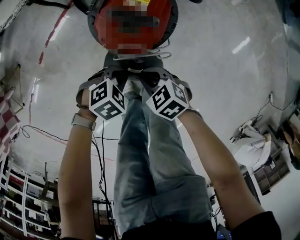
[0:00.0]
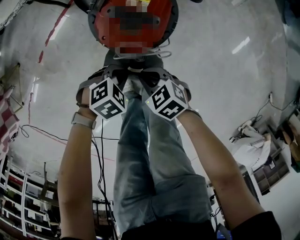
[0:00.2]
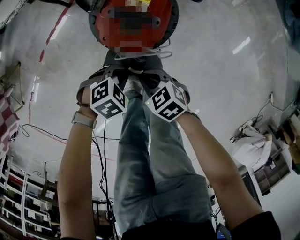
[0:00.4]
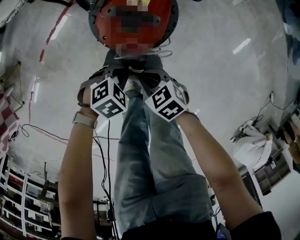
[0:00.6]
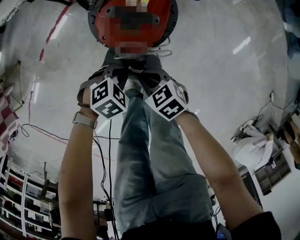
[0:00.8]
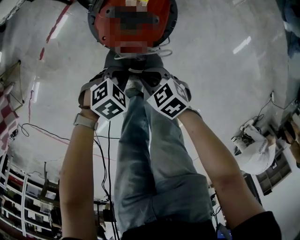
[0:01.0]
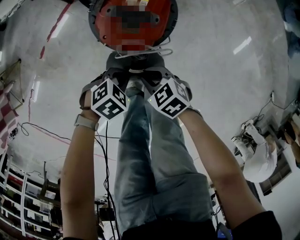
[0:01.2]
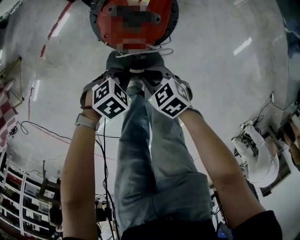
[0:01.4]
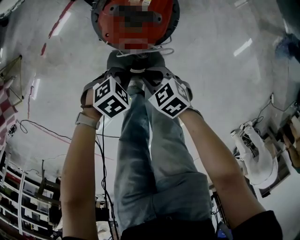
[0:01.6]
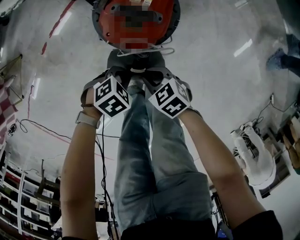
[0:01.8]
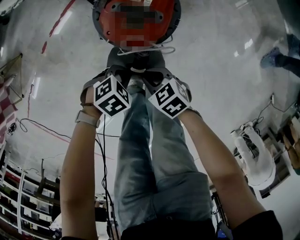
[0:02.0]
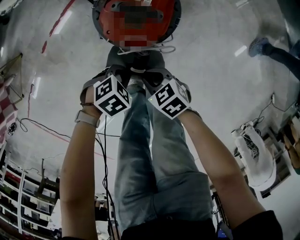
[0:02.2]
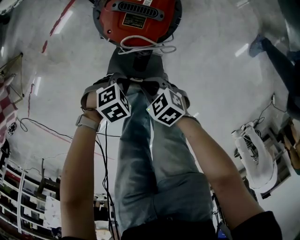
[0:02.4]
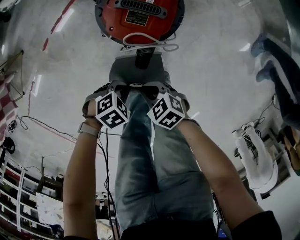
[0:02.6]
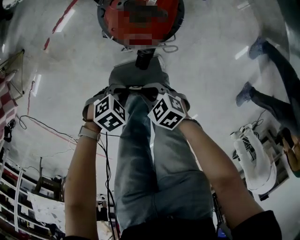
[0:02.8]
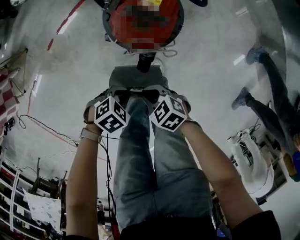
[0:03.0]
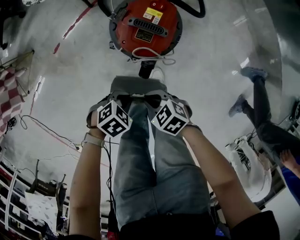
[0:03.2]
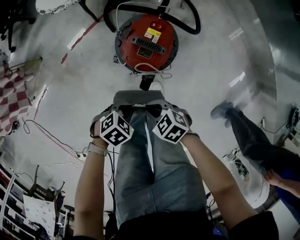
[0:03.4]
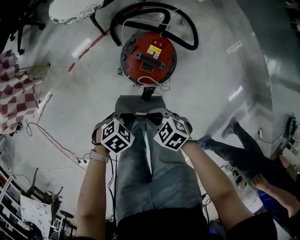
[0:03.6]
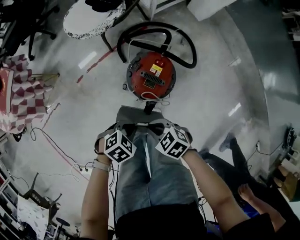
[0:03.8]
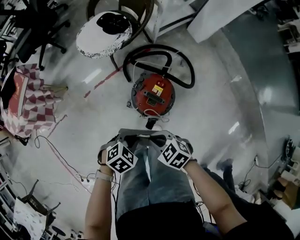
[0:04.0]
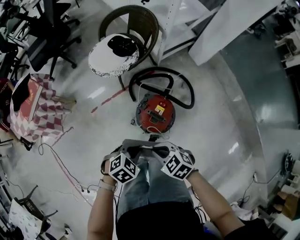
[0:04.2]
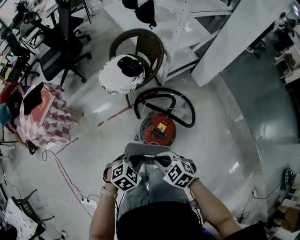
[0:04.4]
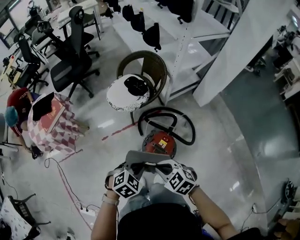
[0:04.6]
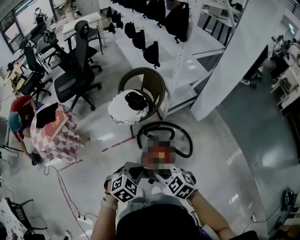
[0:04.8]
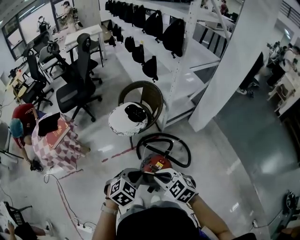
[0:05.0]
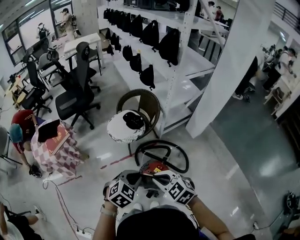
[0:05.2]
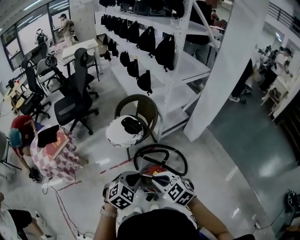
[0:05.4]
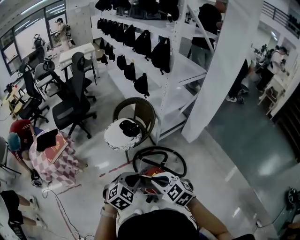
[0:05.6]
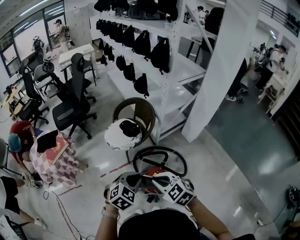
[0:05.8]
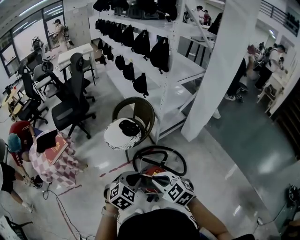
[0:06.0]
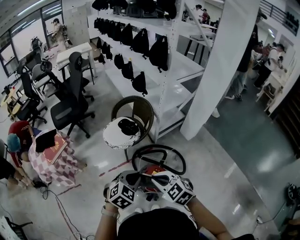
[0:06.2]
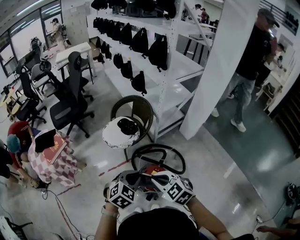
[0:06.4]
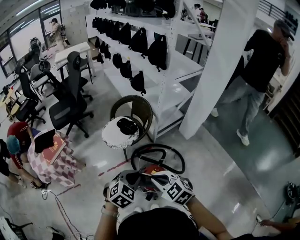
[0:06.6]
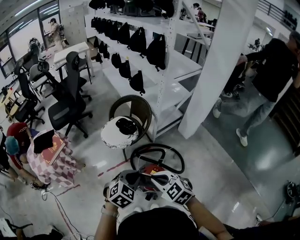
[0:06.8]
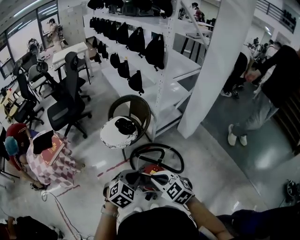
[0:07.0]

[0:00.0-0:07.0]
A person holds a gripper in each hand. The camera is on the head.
0.0 to 1.4 s: The left gripper moves some 5 cm.
1.4 to 2.8 s: The left gripper shifts by approximately 10 cm; the right gripper moves some 10 cm.
2.8 to 4.2 s: Both grippers travel together upward, about 40 cm. The left gripper rotates about 30 degrees.
4.2 to 5.6 s: Both grippers move upward, roughly 30 cm. The right gripper changes its angle by approximately 20 degrees; the left gripper turns by about 30 degrees.
5.6 to 7.0 s: The two grippers keep their place.

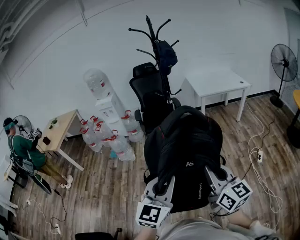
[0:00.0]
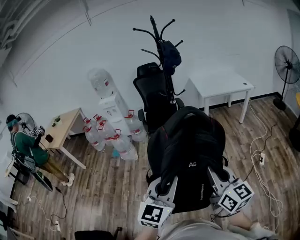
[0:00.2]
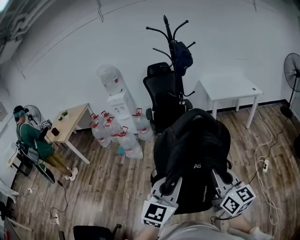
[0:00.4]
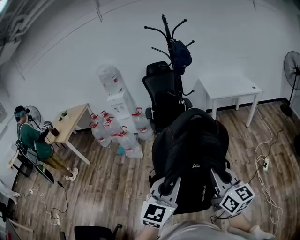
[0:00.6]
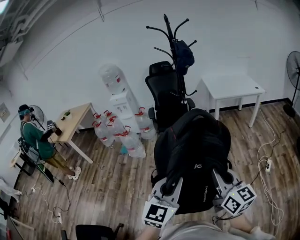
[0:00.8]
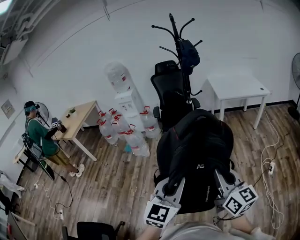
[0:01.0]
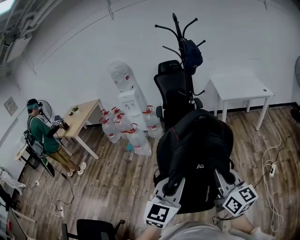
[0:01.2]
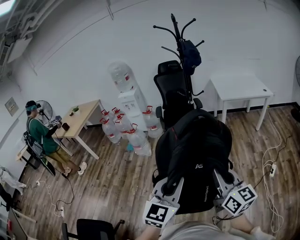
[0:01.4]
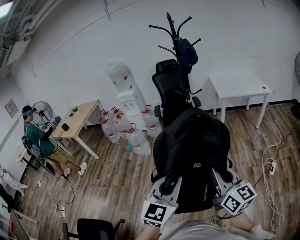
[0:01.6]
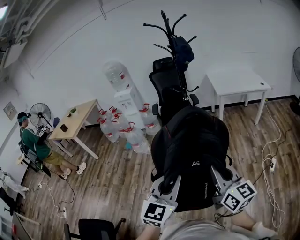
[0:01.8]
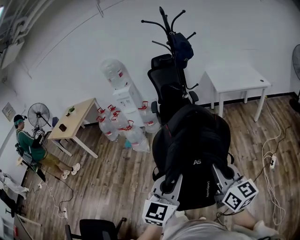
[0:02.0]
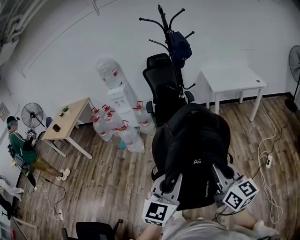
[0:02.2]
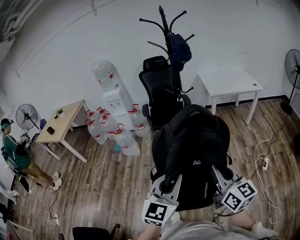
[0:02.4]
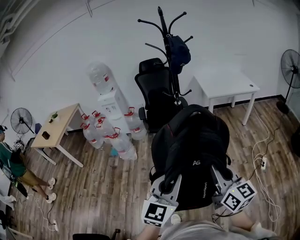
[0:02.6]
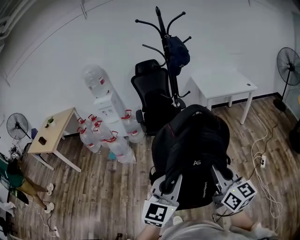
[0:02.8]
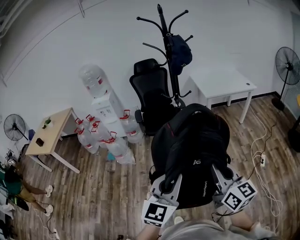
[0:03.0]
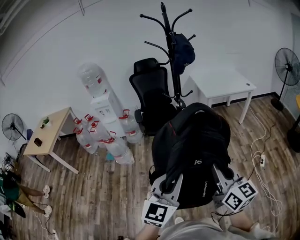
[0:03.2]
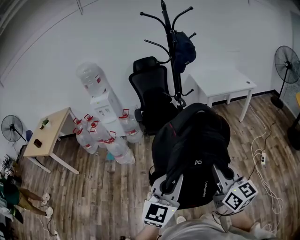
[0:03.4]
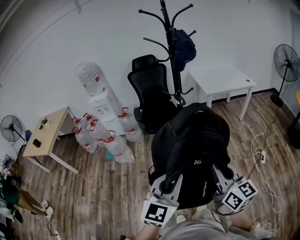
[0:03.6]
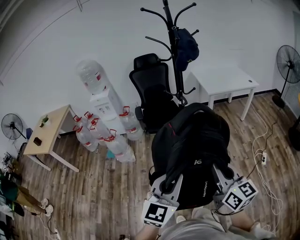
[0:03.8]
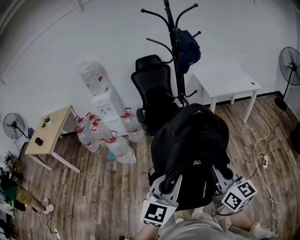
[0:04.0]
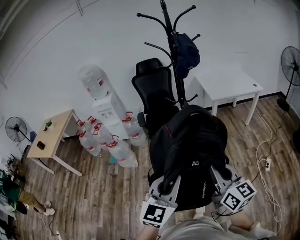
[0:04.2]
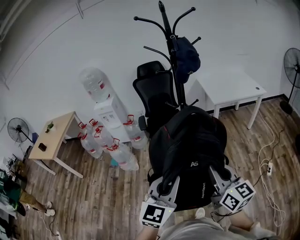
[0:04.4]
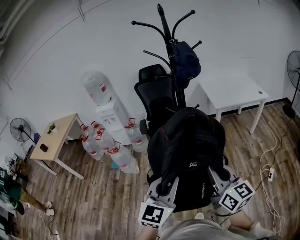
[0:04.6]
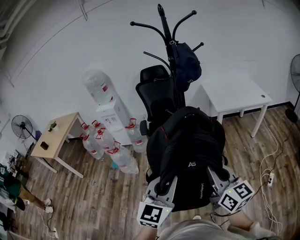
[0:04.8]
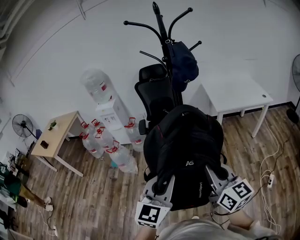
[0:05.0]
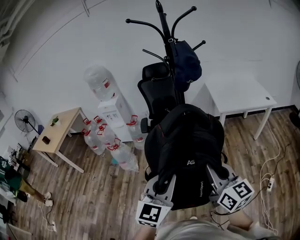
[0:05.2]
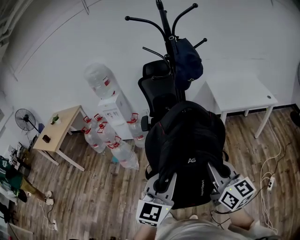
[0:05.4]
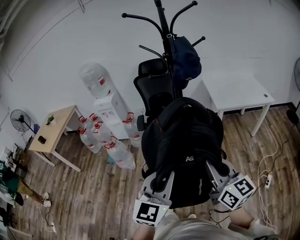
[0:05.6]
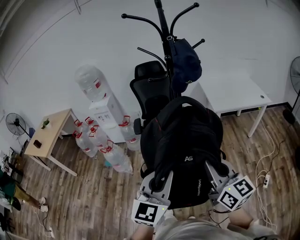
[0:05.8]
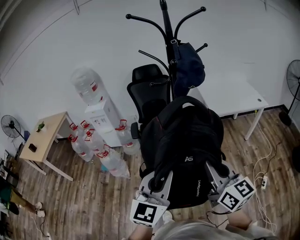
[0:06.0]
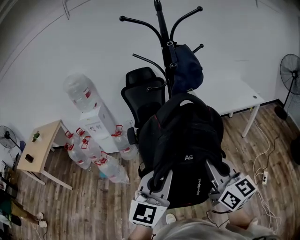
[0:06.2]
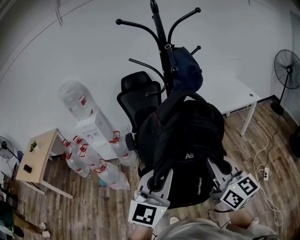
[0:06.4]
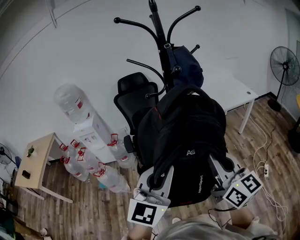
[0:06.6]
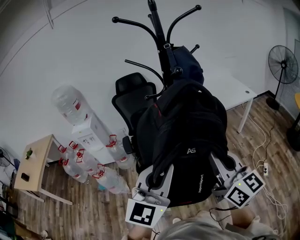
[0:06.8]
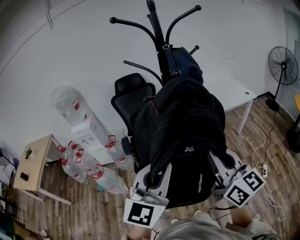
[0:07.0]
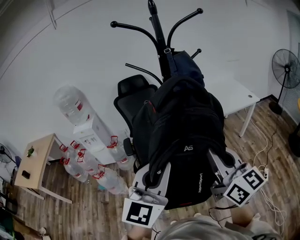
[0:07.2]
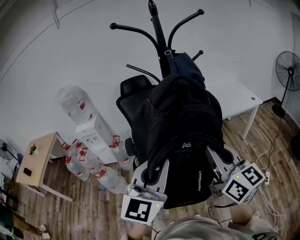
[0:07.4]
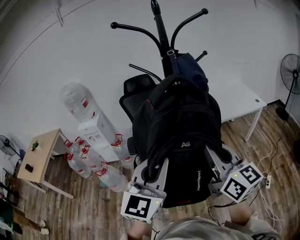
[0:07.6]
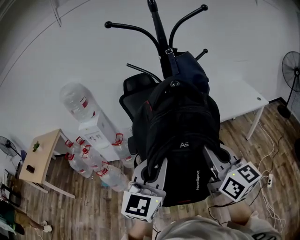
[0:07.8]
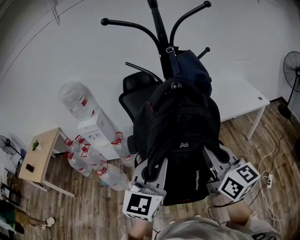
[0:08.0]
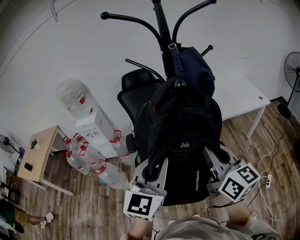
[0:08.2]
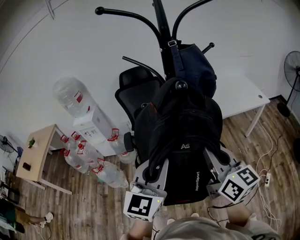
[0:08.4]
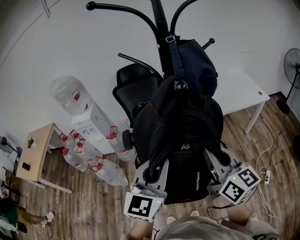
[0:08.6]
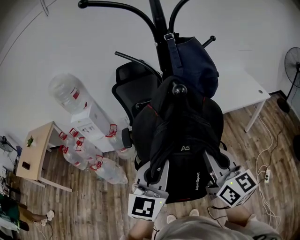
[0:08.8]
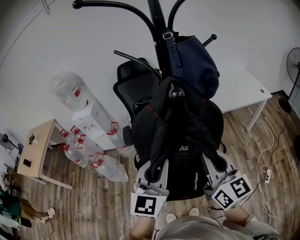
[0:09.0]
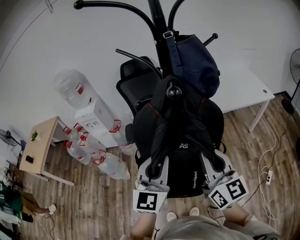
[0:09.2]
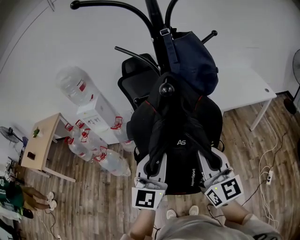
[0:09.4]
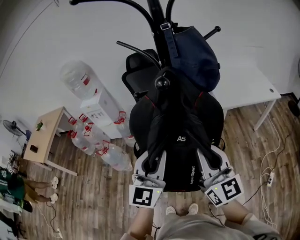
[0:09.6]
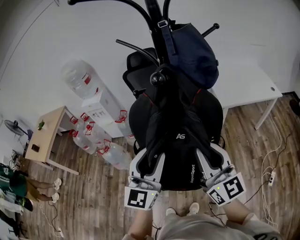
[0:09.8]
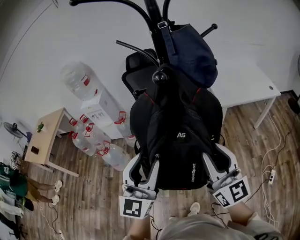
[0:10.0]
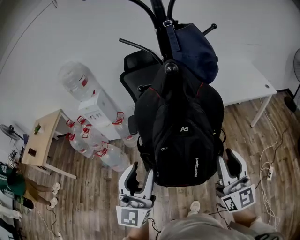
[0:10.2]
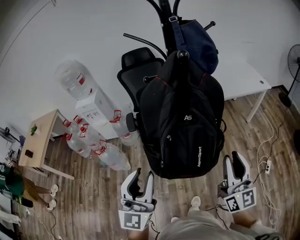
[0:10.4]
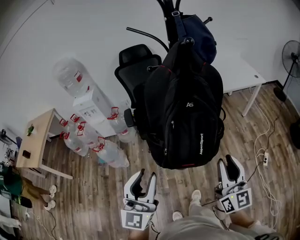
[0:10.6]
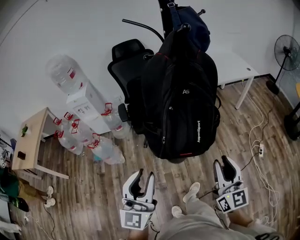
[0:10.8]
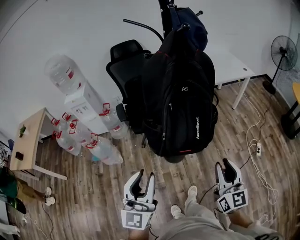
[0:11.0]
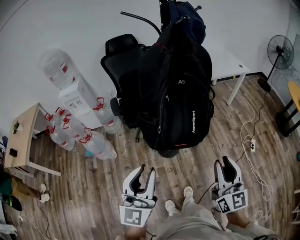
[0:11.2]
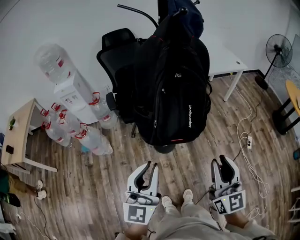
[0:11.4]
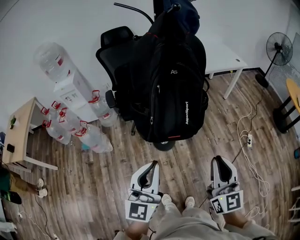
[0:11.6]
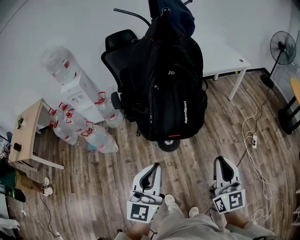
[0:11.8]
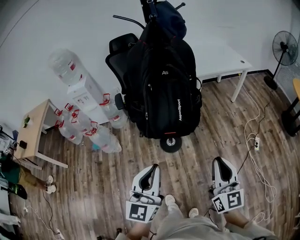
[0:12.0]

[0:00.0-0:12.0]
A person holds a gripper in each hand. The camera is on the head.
0.0 to 1.6 s: The grippers stay close to where they were, moving slightly.
1.6 to 3.0 s: The two grippers go about 15 cm forward and to the left.
3.0 to 4.4 s: Both grippers travel together forward, about 15 cm.
4.4 to 6.0 s: Both grippers travel together forward, some 15 cm.
6.0 to 7.6 s: Both grippers travel together forward and upward, some 15 cm.
7.6 to 9.0 s: Both grippers move forward and downward, about 10 cm.
9.0 to 10.4 s: The left gripper shifts some 20 cm backward and to the left, and opens; the right gripper shifts roughly 15 cm backward and to the right, and opens its fingers.
10.4 to 12.0 s: The right gripper heads backward, covering some 20 cm, and closes its fingers; the left gripper is displaced backward, to the right and downward by some 20 cm, and closes its fingers.

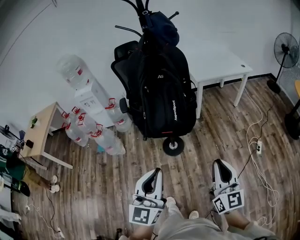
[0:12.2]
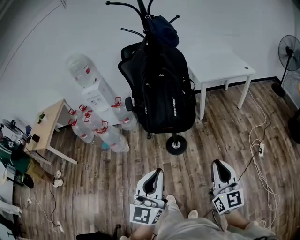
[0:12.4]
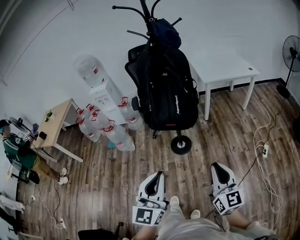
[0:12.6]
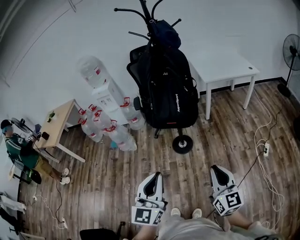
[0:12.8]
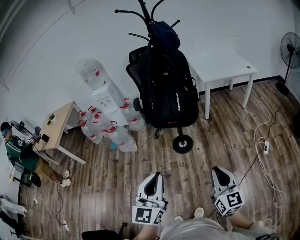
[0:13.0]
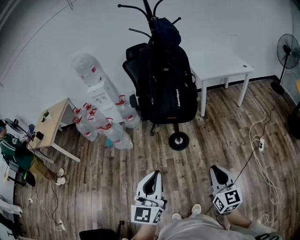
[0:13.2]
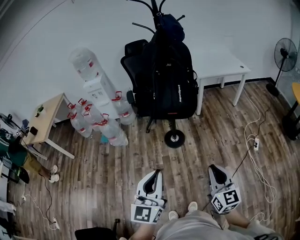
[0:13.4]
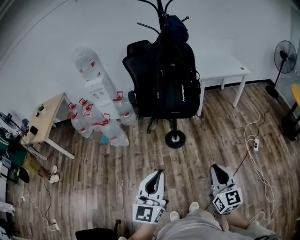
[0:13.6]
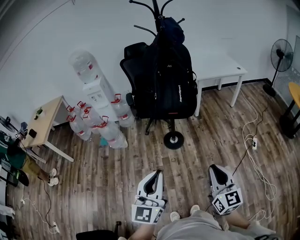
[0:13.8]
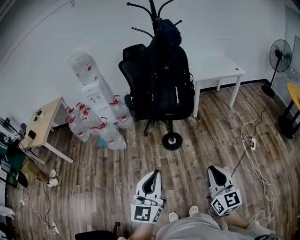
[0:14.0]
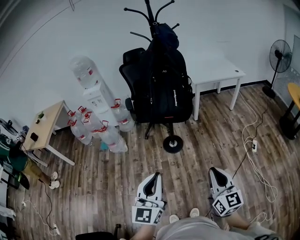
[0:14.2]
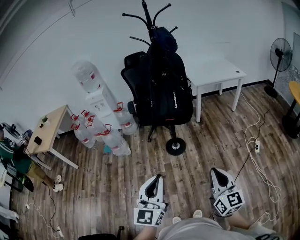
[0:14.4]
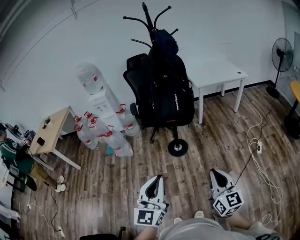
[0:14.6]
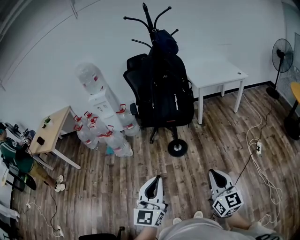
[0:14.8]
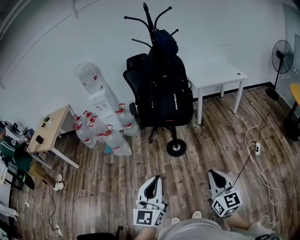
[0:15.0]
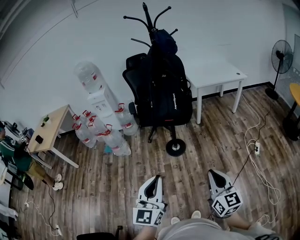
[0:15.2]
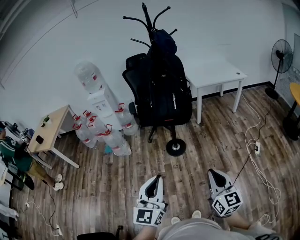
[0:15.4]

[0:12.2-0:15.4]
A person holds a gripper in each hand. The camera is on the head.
12.2 to 13.8 s: Both grippers move backward, about 20 cm.
13.8 to 15.4 s: The right gripper ends up about 5 cm from where it was. The left gripper shifts about 5 cm to the right.

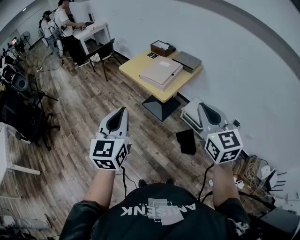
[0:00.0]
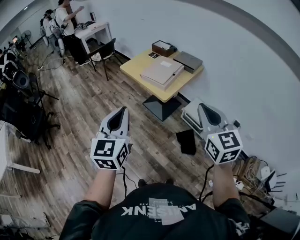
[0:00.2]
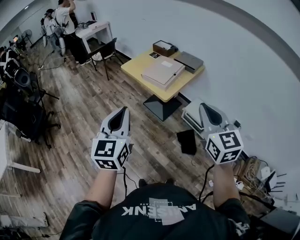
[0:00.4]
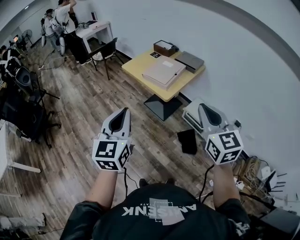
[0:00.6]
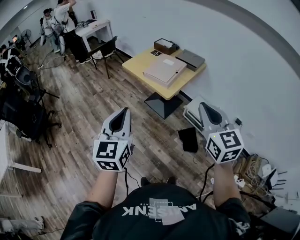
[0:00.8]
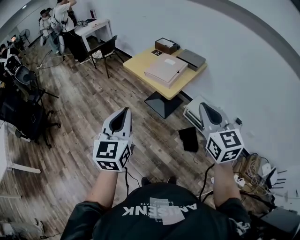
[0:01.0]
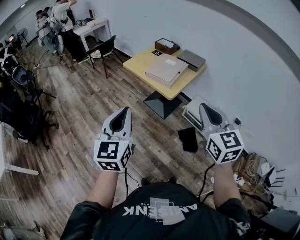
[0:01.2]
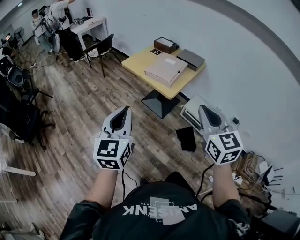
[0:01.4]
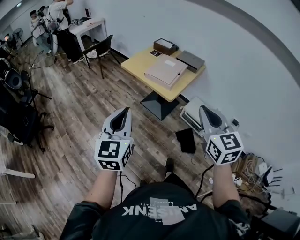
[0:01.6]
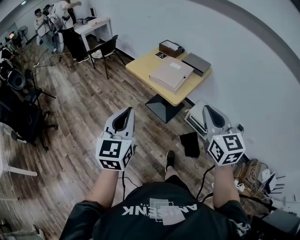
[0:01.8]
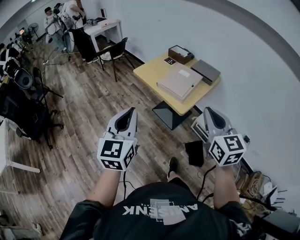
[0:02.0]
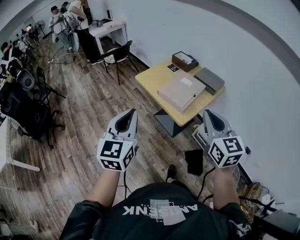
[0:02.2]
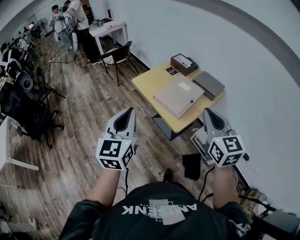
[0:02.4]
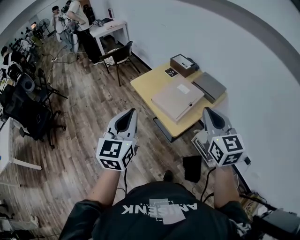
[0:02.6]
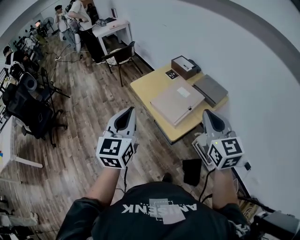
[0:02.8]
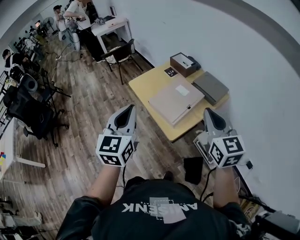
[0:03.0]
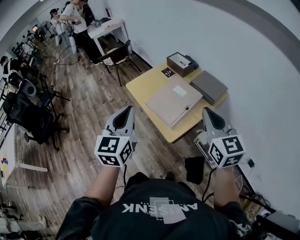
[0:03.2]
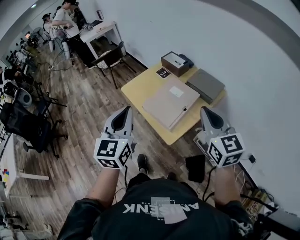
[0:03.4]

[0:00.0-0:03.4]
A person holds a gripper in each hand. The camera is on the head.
0.0 to 1.6 s: Both grippers travel together to the left, about 10 cm.
1.6 to 3.4 s: Both grippers travel together forward and to the right, about 40 cm.
